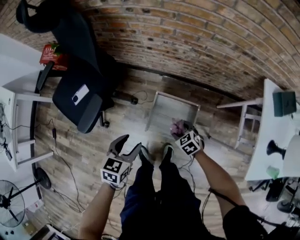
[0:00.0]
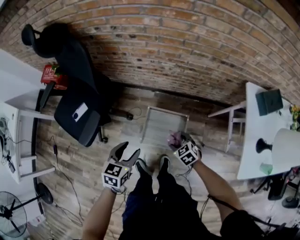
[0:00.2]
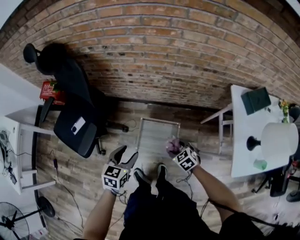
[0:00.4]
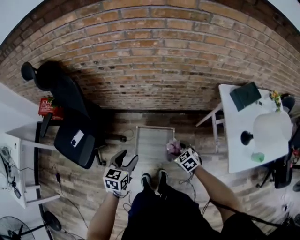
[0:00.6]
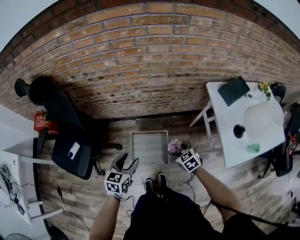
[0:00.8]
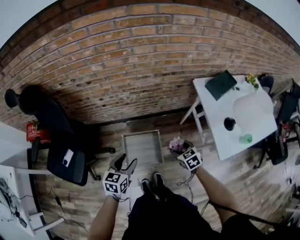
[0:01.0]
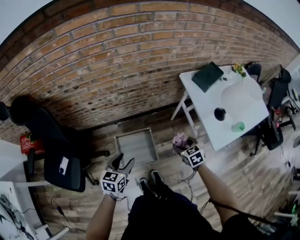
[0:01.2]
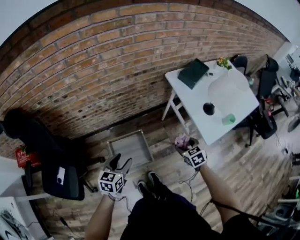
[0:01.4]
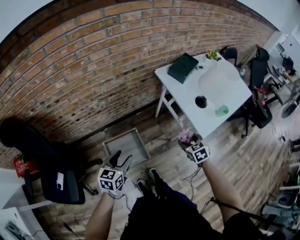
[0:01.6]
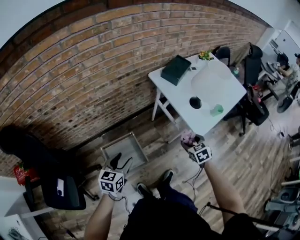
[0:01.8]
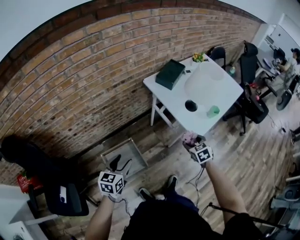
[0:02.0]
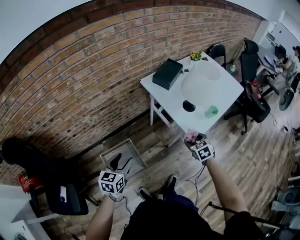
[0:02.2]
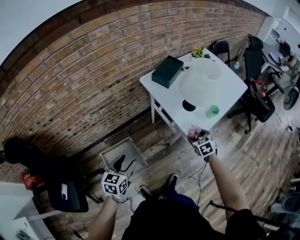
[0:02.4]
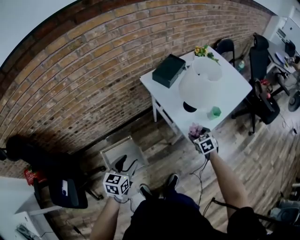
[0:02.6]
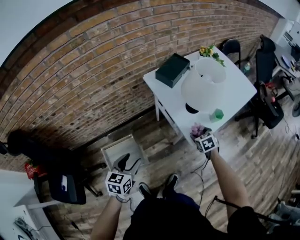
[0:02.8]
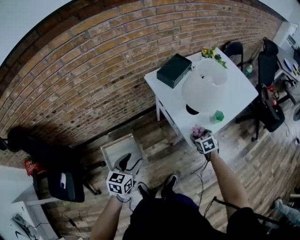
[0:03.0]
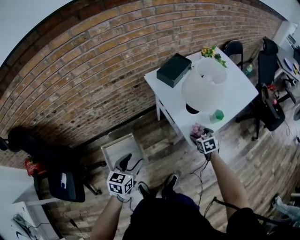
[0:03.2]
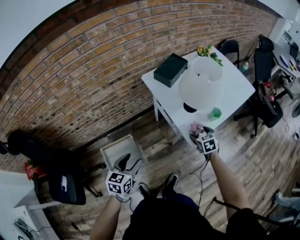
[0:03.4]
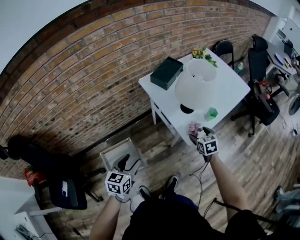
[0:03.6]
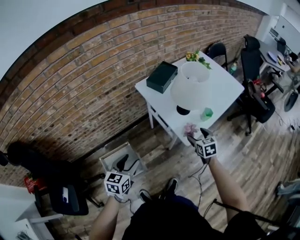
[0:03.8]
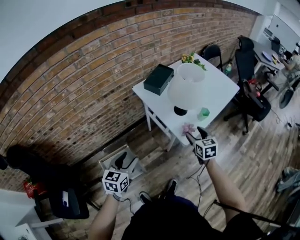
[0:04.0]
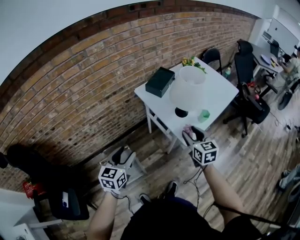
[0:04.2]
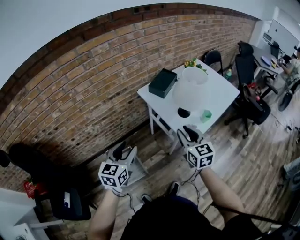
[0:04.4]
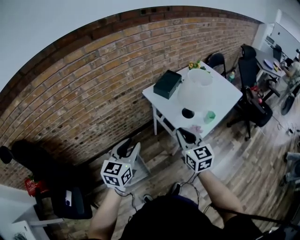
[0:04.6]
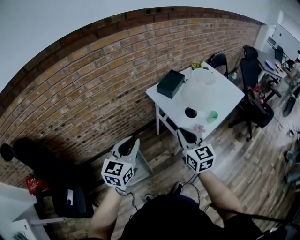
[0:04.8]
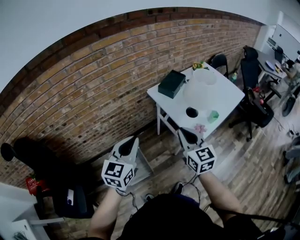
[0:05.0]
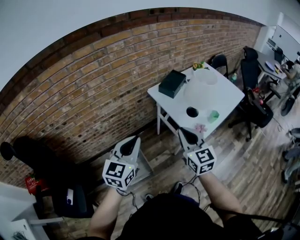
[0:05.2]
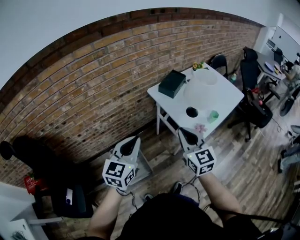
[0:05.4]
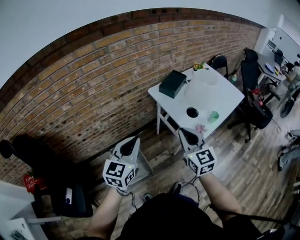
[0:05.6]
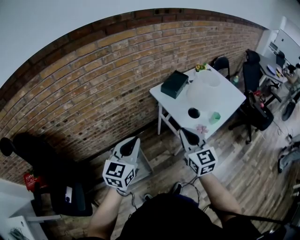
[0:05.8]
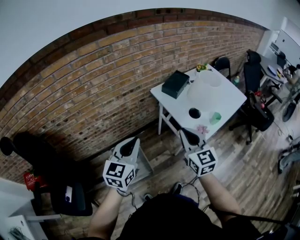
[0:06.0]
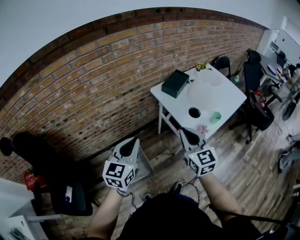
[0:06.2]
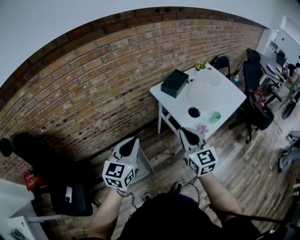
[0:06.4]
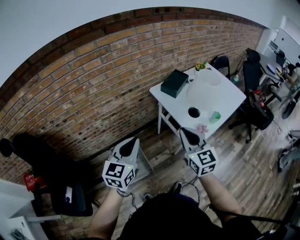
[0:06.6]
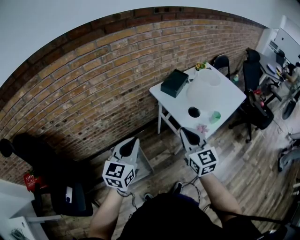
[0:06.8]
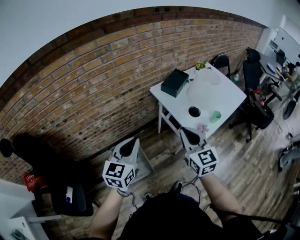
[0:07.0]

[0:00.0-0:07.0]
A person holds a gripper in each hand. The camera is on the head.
0:00.0 to 0:01.4: The right gripper changes place by roughly 40 cm, and swivels approximately 50 degrees, while the left gripper shifts by some 25 cm, and rotates roughly 30 degrees.
0:01.4 to 0:02.8: The left gripper goes approximately 20 cm to the right, while the right gripper goes roughly 30 cm to the right and forward.
0:02.8 to 0:04.2: The left gripper heads upward, covering some 10 cm. The right gripper shifts roughly 20 cm upward and backward, and rotates roughly 30 degrees.
0:04.2 to 0:05.6: The left gripper shifts roughly 10 cm upward, and closes its fingers. The right gripper travels to the left, upward and backward by about 20 cm, and closes.
0:05.6 to 0:07.0: The grippers stay close to where they were, moving slightly.

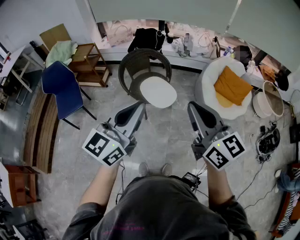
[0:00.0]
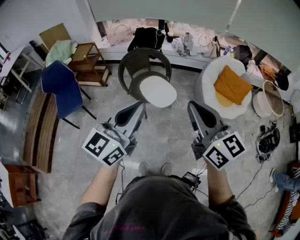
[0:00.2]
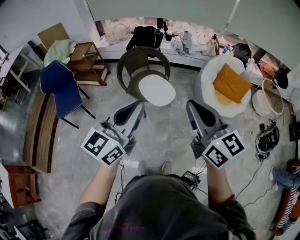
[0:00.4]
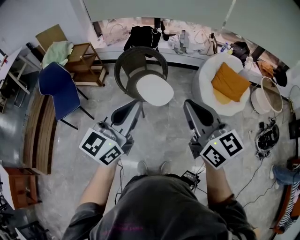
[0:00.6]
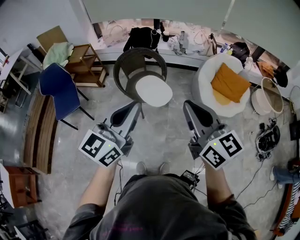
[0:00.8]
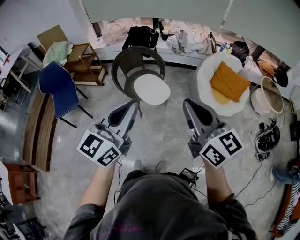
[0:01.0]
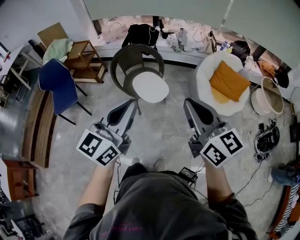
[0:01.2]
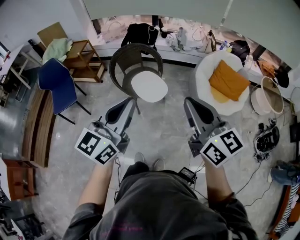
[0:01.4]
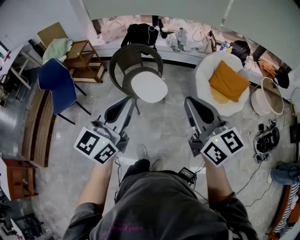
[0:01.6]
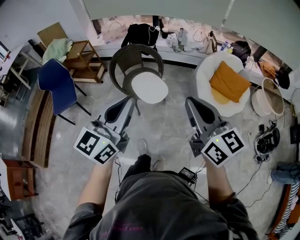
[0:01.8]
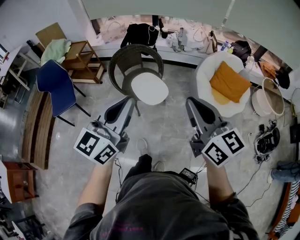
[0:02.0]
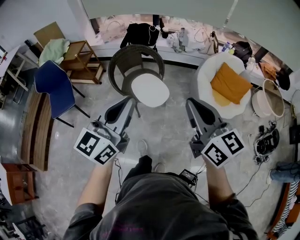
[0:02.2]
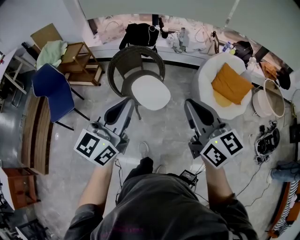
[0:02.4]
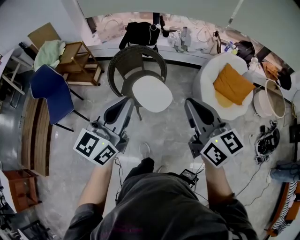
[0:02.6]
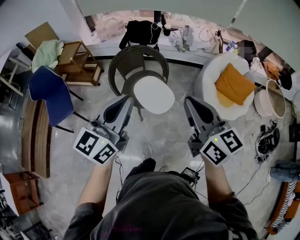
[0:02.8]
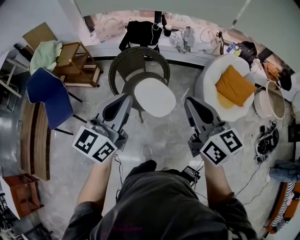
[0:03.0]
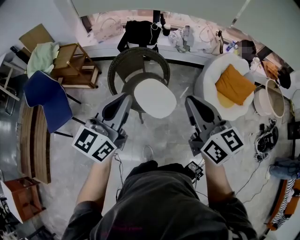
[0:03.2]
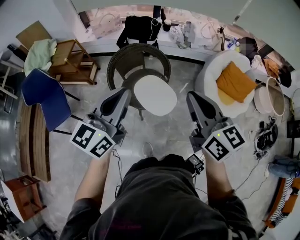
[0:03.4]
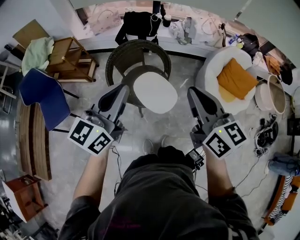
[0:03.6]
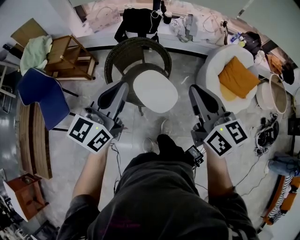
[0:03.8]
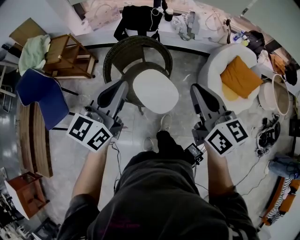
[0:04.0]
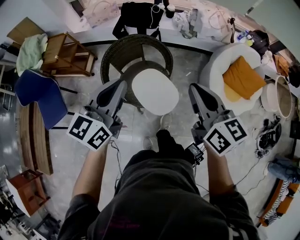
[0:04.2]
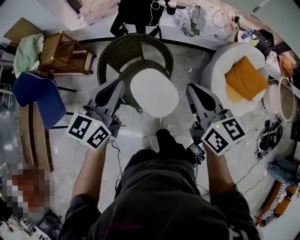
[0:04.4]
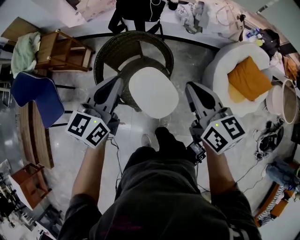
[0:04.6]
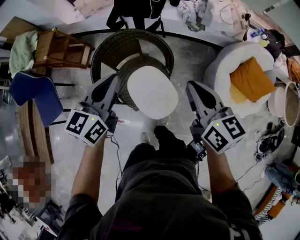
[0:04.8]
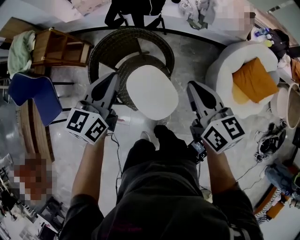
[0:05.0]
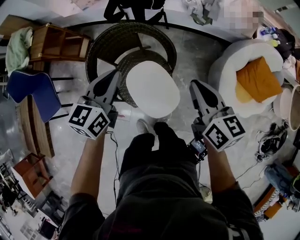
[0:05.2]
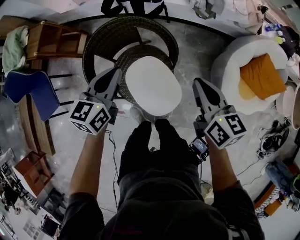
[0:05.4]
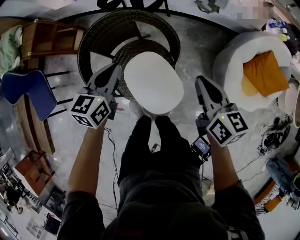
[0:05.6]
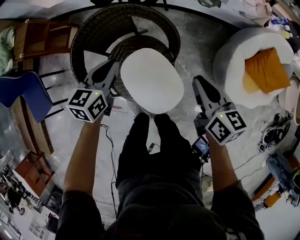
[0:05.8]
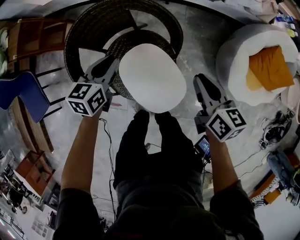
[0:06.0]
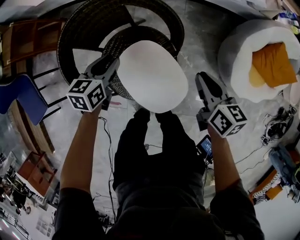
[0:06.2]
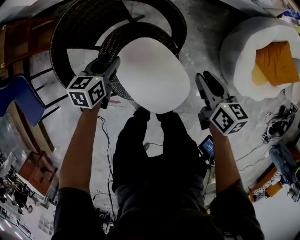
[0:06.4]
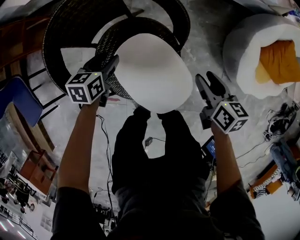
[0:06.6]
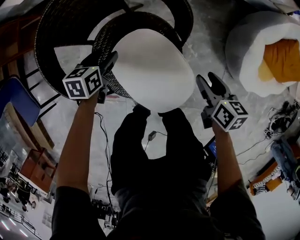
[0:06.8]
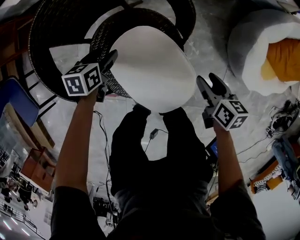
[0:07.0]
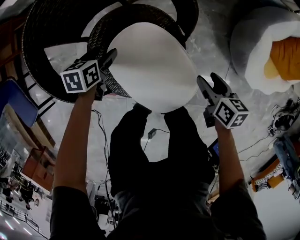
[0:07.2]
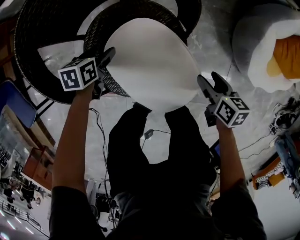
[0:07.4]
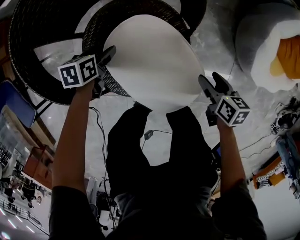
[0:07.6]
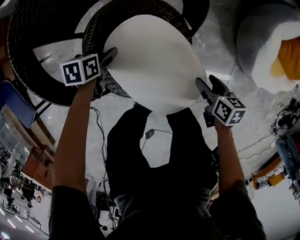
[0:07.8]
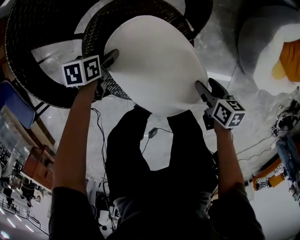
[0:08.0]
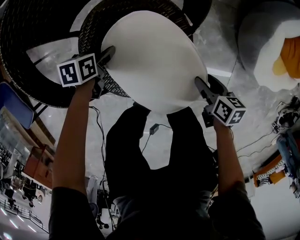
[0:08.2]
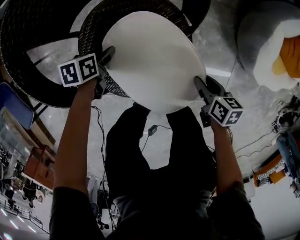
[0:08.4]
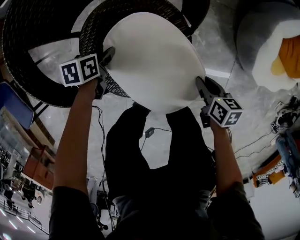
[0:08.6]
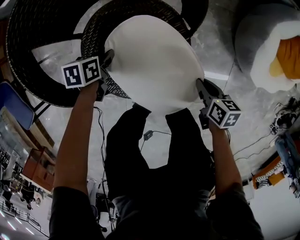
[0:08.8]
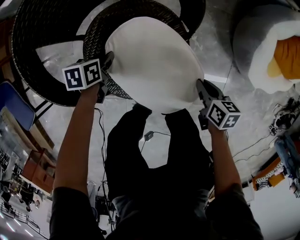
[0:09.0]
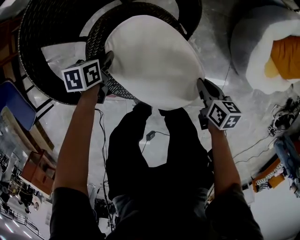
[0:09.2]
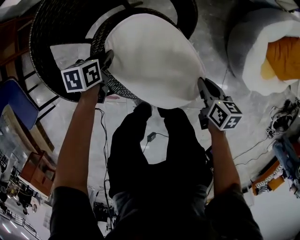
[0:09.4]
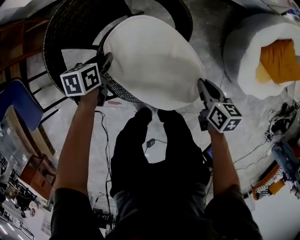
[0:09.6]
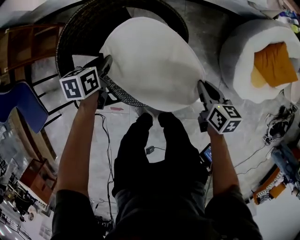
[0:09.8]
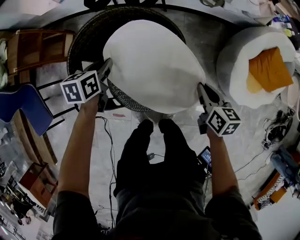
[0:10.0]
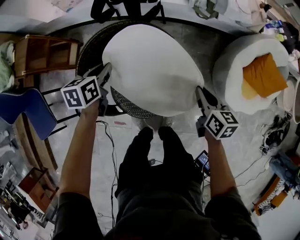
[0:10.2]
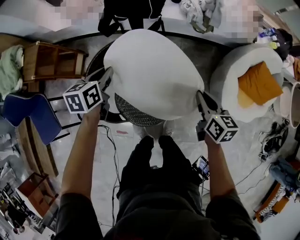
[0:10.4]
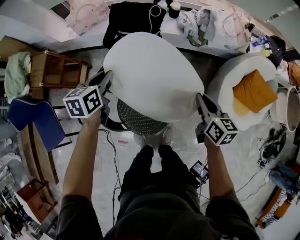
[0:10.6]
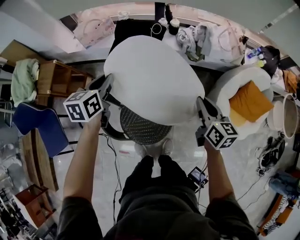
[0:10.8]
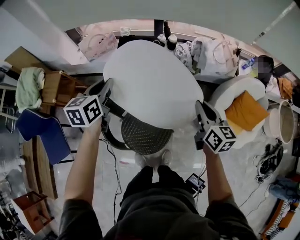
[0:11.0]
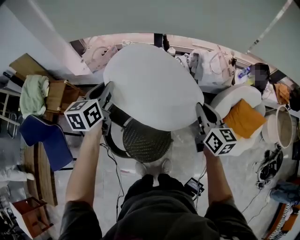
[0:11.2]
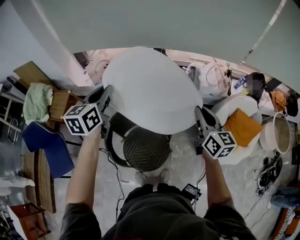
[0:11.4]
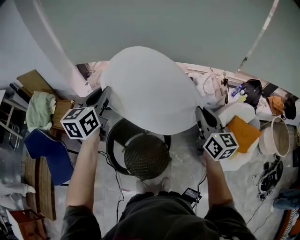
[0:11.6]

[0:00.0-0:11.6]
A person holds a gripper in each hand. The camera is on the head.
0:00.0 to 0:01.4: Both grippers move to the right, some 10 cm.
0:01.4 to 0:02.8: The two grippers go about 20 cm forward and to the left.
0:02.8 to 0:04.4: The grippers both shift forward and downward by roughly 30 cm.
0:04.4 to 0:05.8: Both grippers travel together downward and forward, roughly 30 cm. The left gripper changes its angle by about 20 degrees.
0:05.8 to 0:07.2: Both grippers travel together downward, roughly 30 cm. The right gripper changes its angle by about 20 degrees, and opens up; the left gripper changes its angle by approximately 30 degrees, and opens up.
0:07.2 to 0:08.8: The left gripper is displaced downward by about 5 cm, and closes; the right gripper goes some 10 cm downward and backward, and closes.
0:08.8 to 0:10.2: The two grippers go approximately 30 cm upward. The left gripper swivels some 30 degrees; the right gripper turns by some 30 degrees.
0:10.2 to 0:11.6: The grippers both shift upward by some 50 cm. The left gripper tilts its fingers some 30 degrees upward, while the right gripper points its fingers approximately 30 degrees further upward.

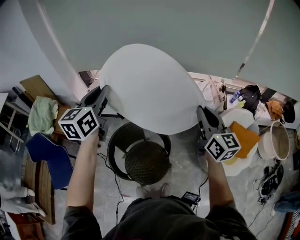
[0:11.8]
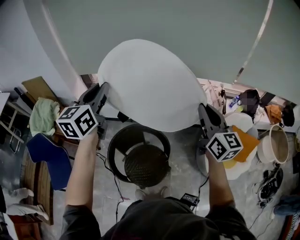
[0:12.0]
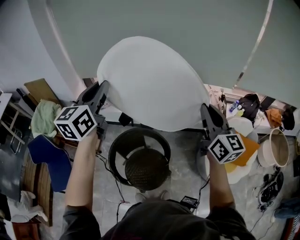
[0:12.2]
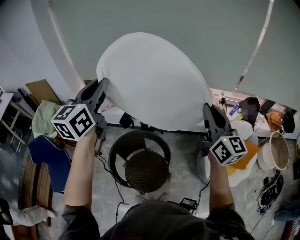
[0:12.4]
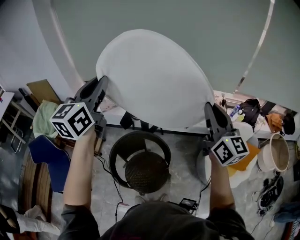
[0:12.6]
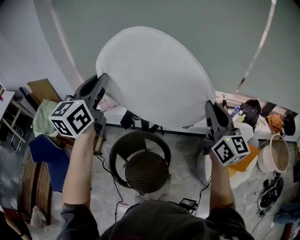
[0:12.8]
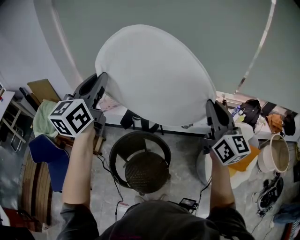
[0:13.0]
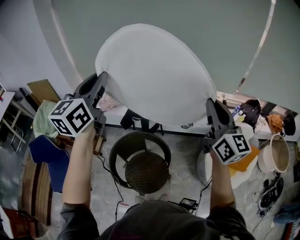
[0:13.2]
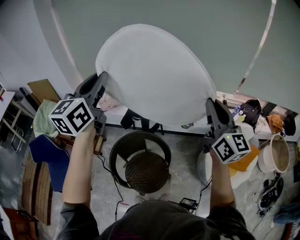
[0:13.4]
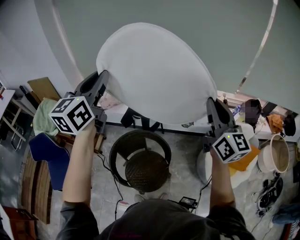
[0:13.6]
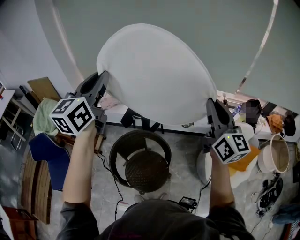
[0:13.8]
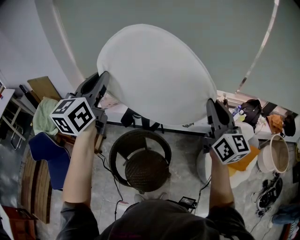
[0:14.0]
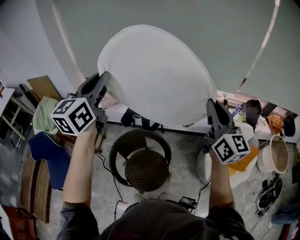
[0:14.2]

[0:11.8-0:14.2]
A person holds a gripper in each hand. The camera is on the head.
0:11.8 to 0:13.0: Both grippers move upward, roughly 10 cm.
0:13.0 to 0:14.2: Both grippers stay about where they are.

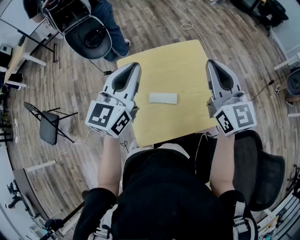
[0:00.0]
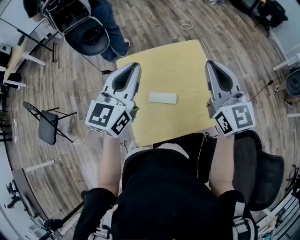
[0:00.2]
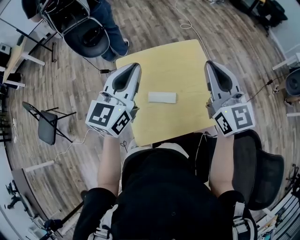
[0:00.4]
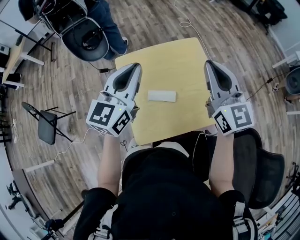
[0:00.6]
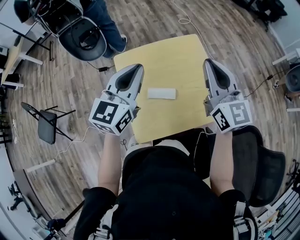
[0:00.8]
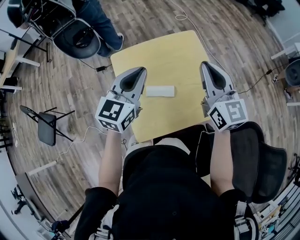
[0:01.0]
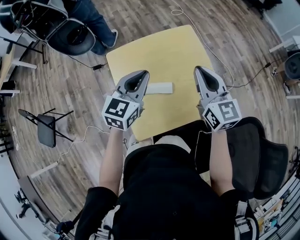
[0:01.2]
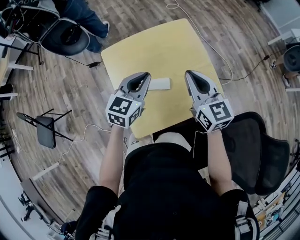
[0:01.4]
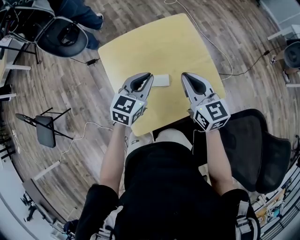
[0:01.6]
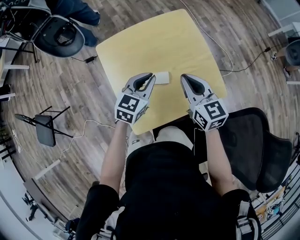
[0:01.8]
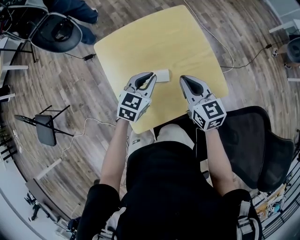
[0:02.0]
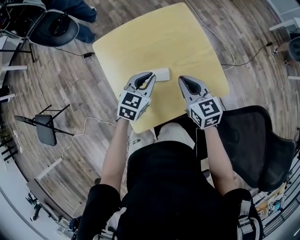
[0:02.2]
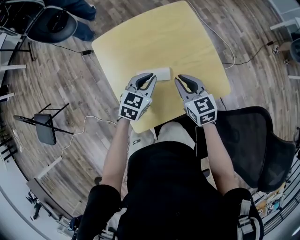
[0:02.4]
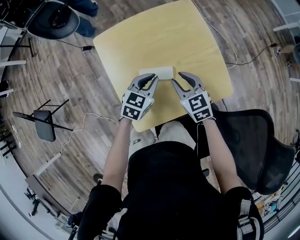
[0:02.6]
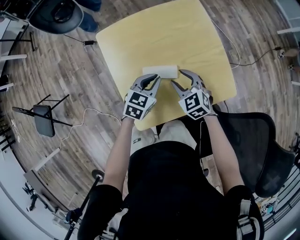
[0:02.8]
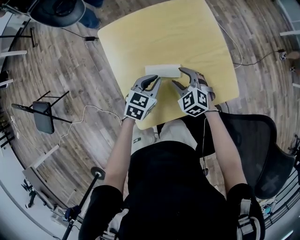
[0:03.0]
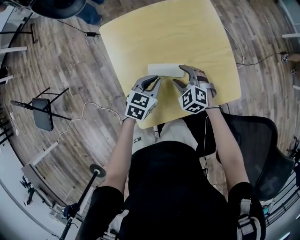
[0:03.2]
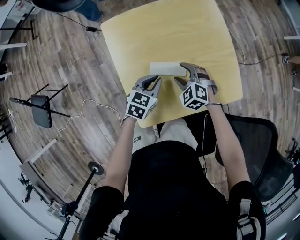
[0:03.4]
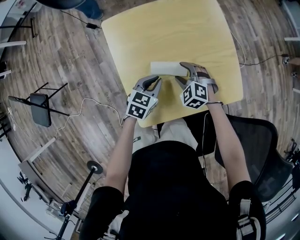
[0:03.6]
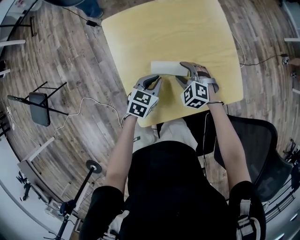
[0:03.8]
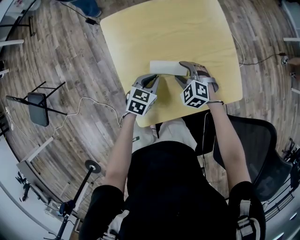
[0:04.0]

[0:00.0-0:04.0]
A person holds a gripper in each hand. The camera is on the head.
0:00.0 to 0:01.4: Both grippers move downward, about 20 cm. The left gripper turns by about 20 degrees.
0:01.4 to 0:02.6: The two grippers go about 20 cm downward. The right gripper turns by about 30 degrees, and opens up.
0:02.6 to 0:04.0: The left gripper shifts approximately 10 cm downward and to the left, while the right gripper heads downward, covering about 10 cm, turns by approximately 40 degrees, and opens up.
